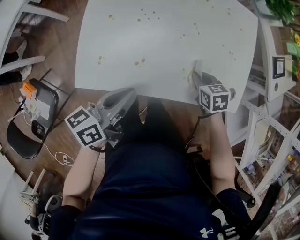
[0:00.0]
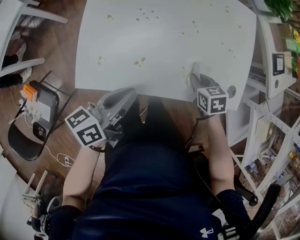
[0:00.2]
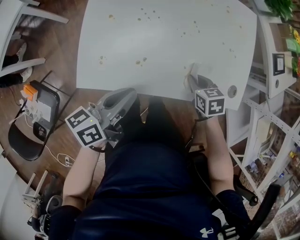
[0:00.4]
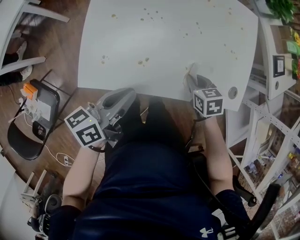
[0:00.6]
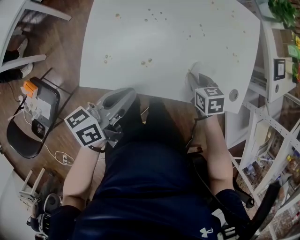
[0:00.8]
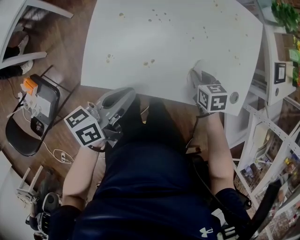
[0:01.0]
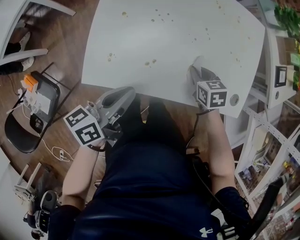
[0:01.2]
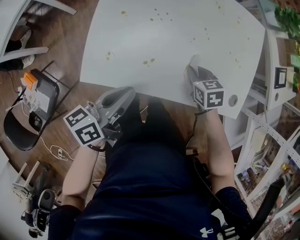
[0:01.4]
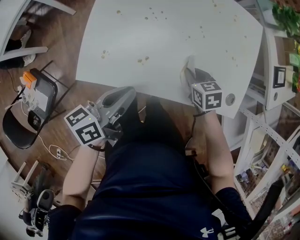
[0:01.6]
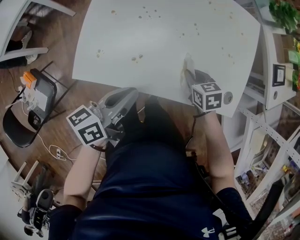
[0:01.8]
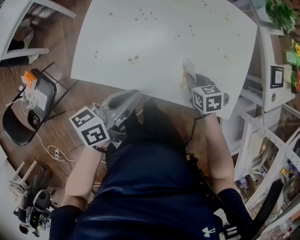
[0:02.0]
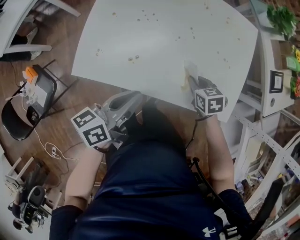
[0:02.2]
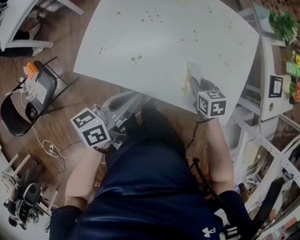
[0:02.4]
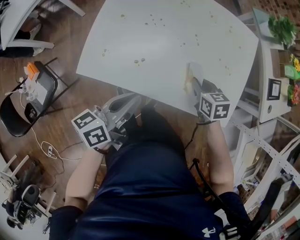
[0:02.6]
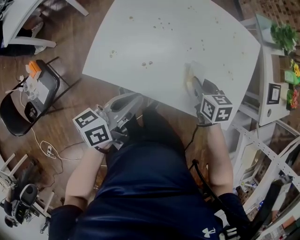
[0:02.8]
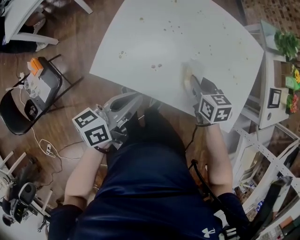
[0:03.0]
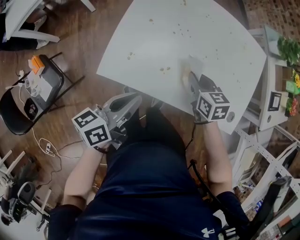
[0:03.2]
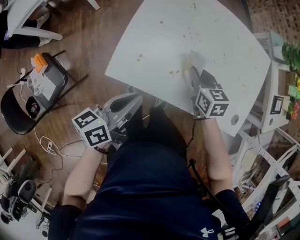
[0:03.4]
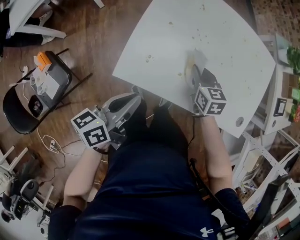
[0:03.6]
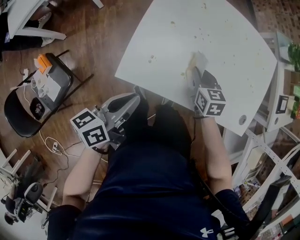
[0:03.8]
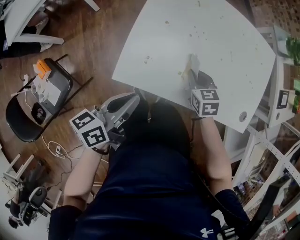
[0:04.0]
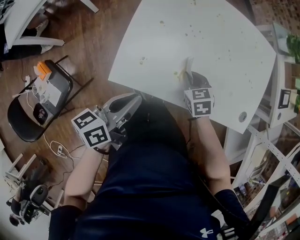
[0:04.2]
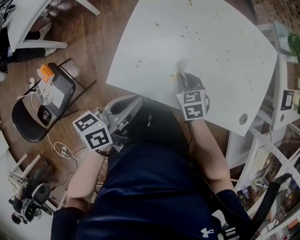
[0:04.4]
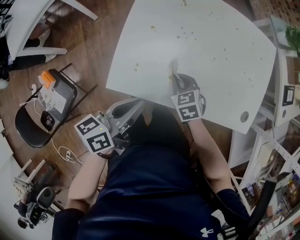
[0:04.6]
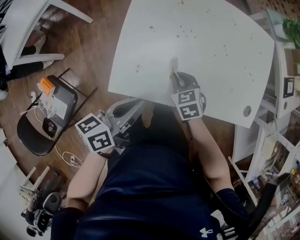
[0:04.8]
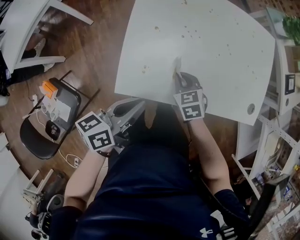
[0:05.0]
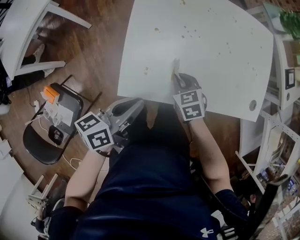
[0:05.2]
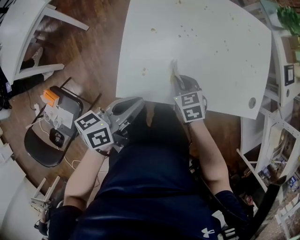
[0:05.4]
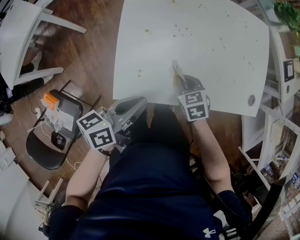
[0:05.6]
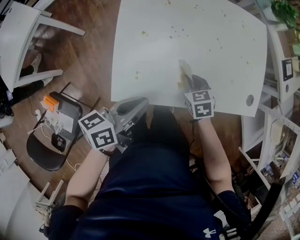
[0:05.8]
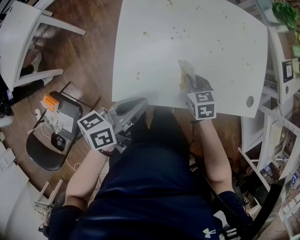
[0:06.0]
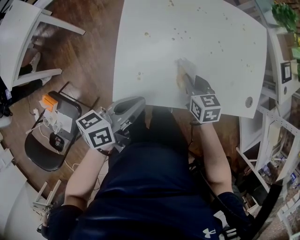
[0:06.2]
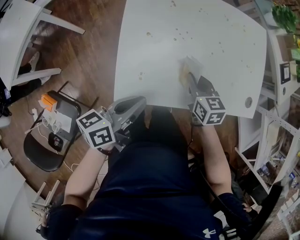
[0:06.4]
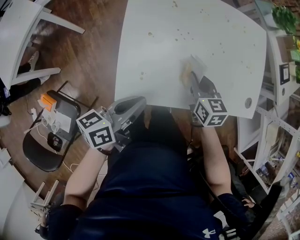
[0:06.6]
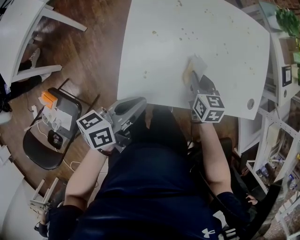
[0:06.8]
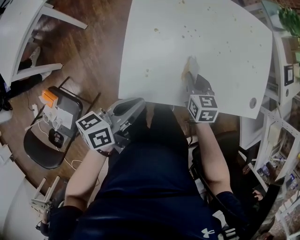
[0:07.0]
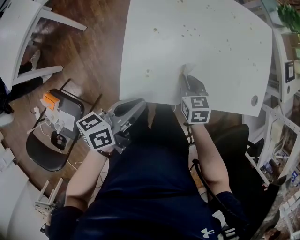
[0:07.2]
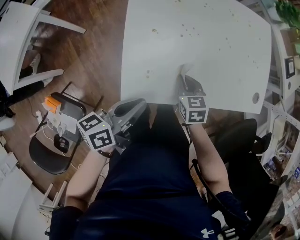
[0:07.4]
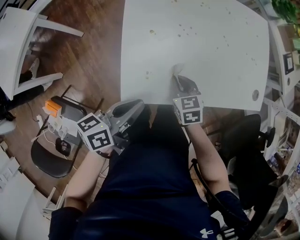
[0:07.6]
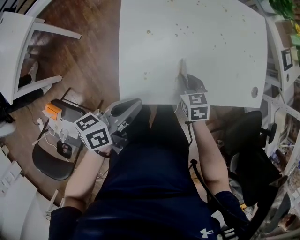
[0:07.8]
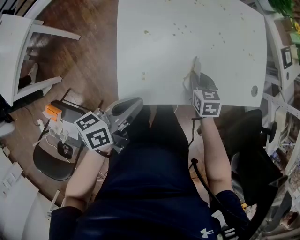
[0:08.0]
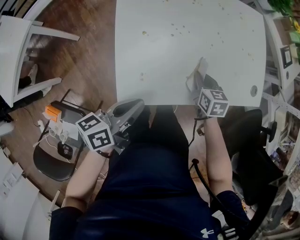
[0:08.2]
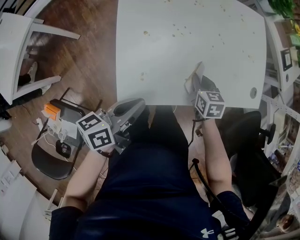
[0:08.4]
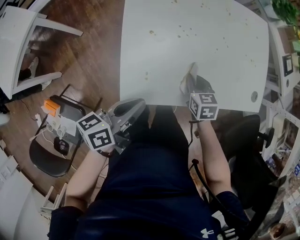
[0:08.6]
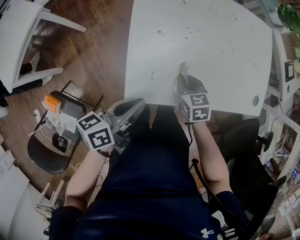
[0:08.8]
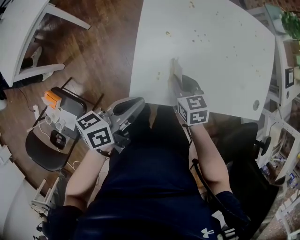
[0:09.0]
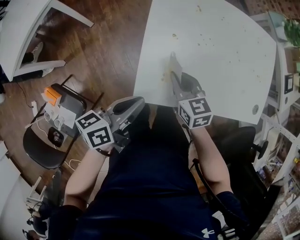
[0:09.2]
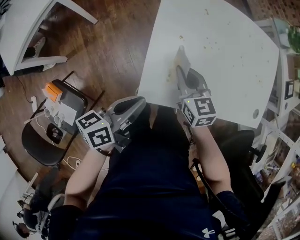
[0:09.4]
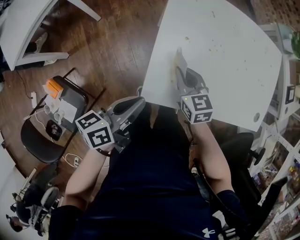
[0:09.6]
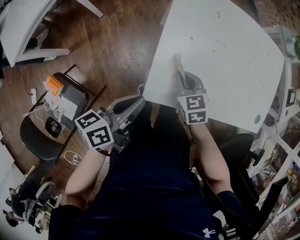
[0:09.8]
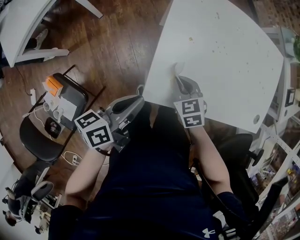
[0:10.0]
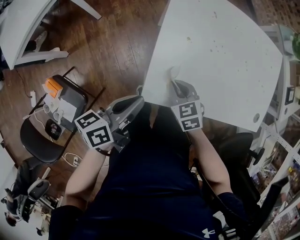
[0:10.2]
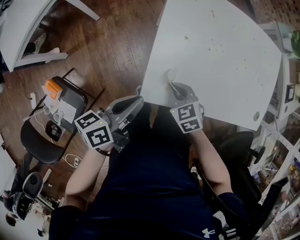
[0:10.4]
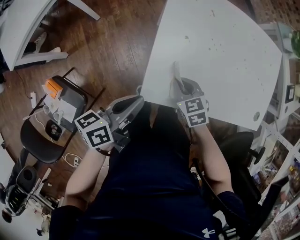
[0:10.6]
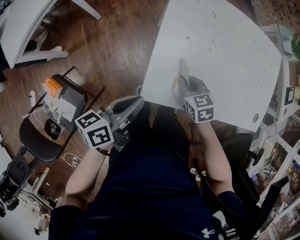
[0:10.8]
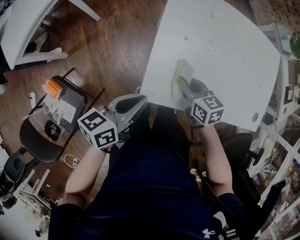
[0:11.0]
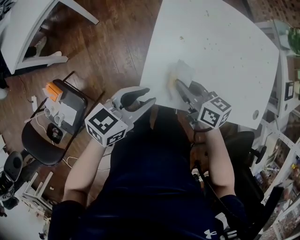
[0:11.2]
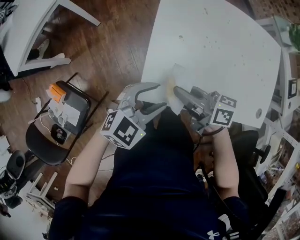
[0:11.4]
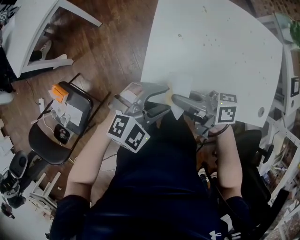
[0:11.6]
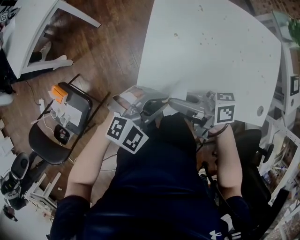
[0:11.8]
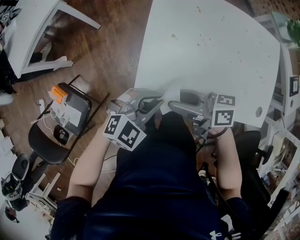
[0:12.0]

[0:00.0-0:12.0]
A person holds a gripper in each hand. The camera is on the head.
1.6 to 3.0 s: The left gripper moves about 5 cm to the right and comes back, while the right gripper is displaced upward by approximately 5 cm.
3.0 to 4.4 s: The left gripper is displaced to the left by approximately 5 cm, while the right gripper moves to the left and downward, approximately 15 cm.
4.4 to 6.0 s: The grippers stay close to where they were, moving slightly.
6.0 to 7.6 s: The left gripper heads to the left, covering approximately 5 cm, while the right gripper is displaced to the left by about 10 cm.
7.6 to 9.0 s: The right gripper goes to the right and returns, about 10 cm each way.
9.0 to 10.4 s: Both grippers move to the left, about 5 cm. The right gripper reaches about 5 cm upward, then returns, and swivels approximately 20 degrees.
10.4 to 12.0 s: The right gripper moves upward, roughly 15 cm, tilts its fingers some 40 degrees upward, and opens its fingers. Meanwhile the left gripper ends up some 10 cm from where it was, rolls clockwise, seen from behind, by some 80 degrees, and opens, then closes once more.

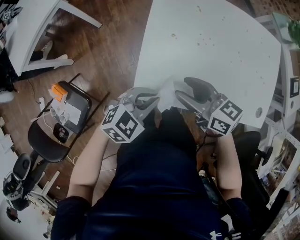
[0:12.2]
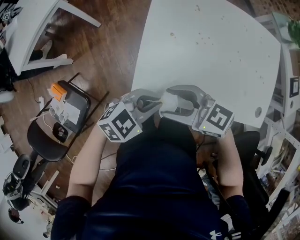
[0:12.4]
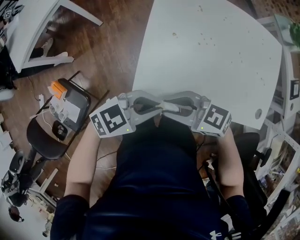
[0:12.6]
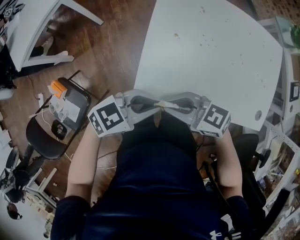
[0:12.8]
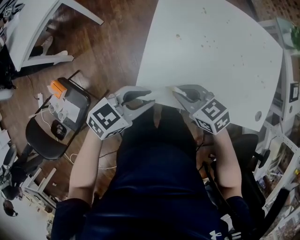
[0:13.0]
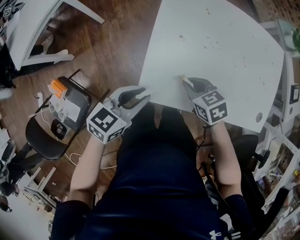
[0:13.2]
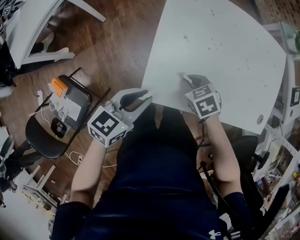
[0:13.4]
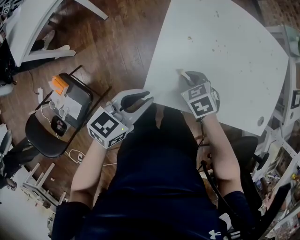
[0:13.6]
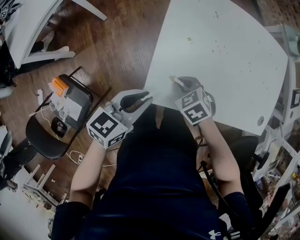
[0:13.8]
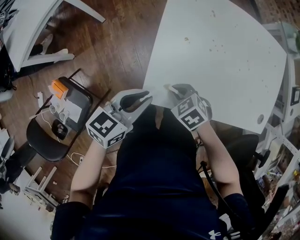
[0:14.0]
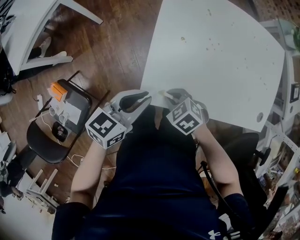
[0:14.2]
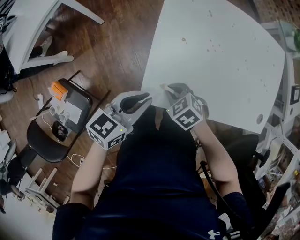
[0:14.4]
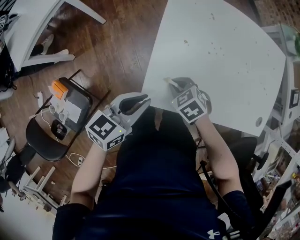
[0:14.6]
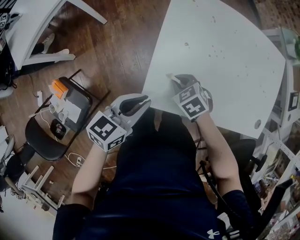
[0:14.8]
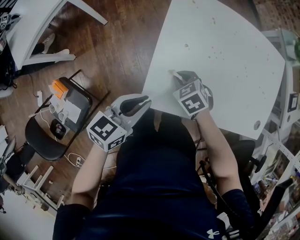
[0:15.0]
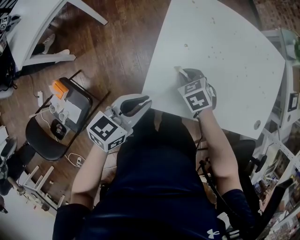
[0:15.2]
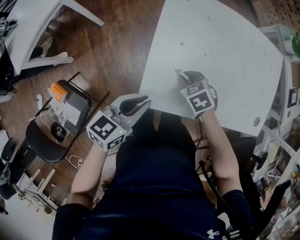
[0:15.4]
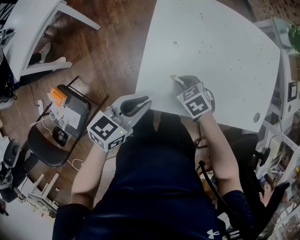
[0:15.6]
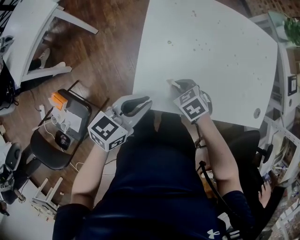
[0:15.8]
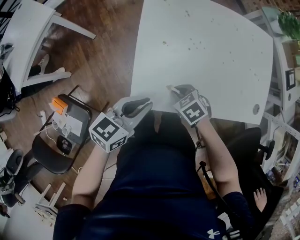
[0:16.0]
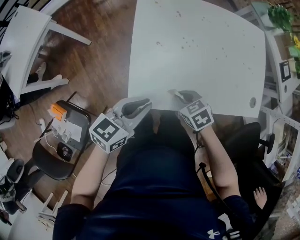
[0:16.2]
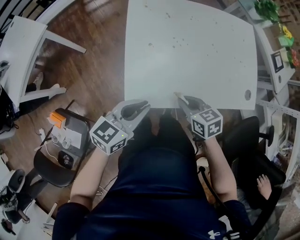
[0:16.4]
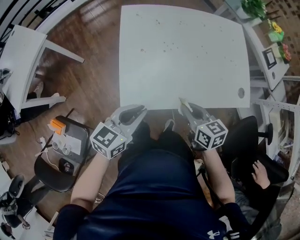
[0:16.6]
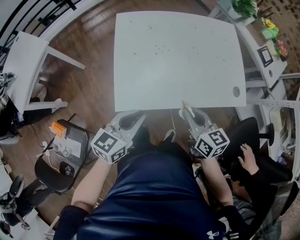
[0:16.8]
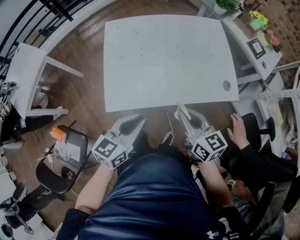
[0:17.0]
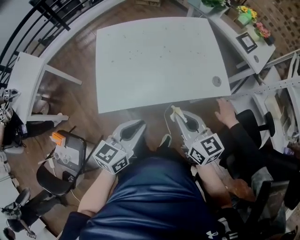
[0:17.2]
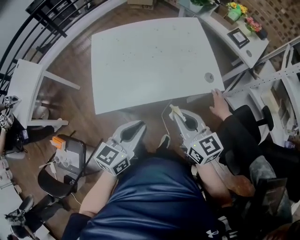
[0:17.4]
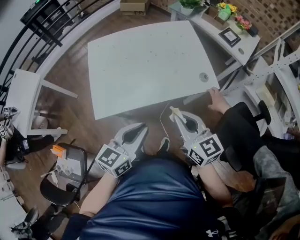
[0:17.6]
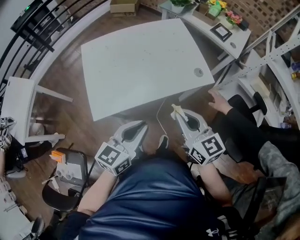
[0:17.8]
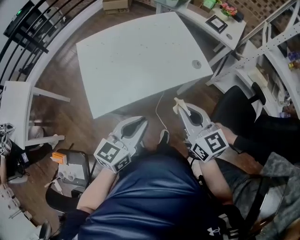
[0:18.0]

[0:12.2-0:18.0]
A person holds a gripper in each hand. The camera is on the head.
12.2 to 13.6 s: The right gripper heads downward, covering roughly 15 cm, tilts its fingers some 40 degrees downward, and closes its fingers, while the left gripper shifts by about 10 cm, and turns by some 40 degrees.
15.0 to 16.6 s: The left gripper goes some 10 cm to the right and upward, while the right gripper travels to the right, backward and upward by approximately 25 cm, and rotates roughly 50 degrees.
16.6 to 18.0 s: The two grippers go about 25 cm to the right, upward and backward. The right gripper rotates approximately 30 degrees.

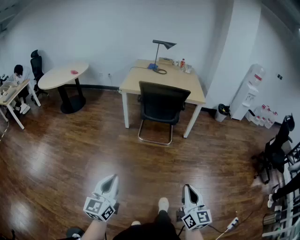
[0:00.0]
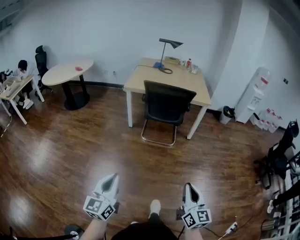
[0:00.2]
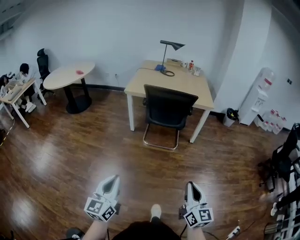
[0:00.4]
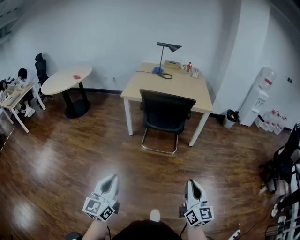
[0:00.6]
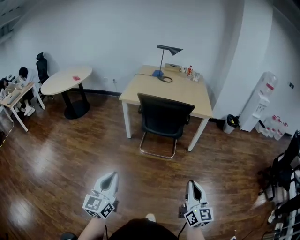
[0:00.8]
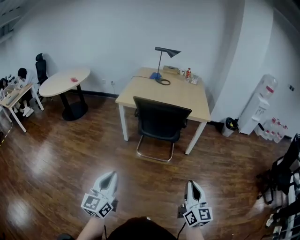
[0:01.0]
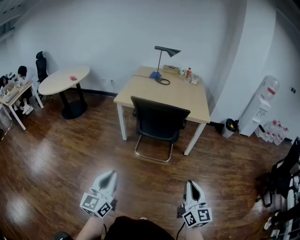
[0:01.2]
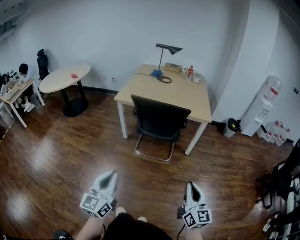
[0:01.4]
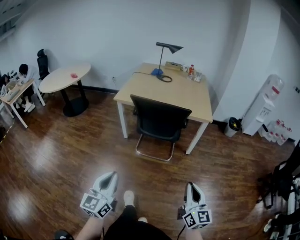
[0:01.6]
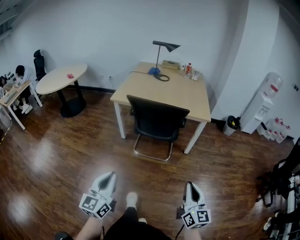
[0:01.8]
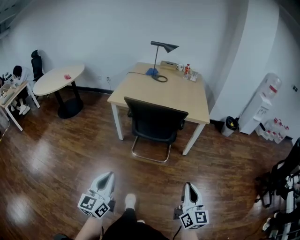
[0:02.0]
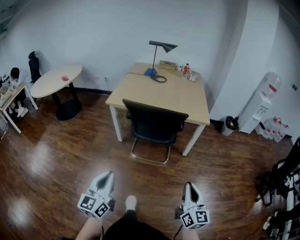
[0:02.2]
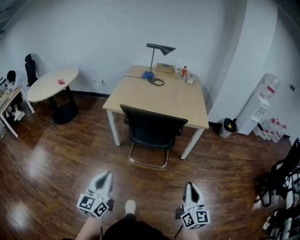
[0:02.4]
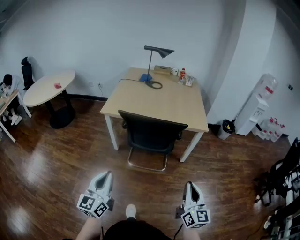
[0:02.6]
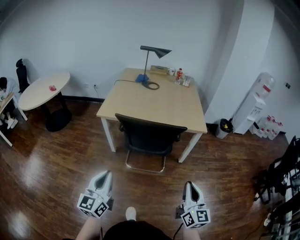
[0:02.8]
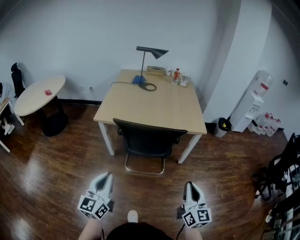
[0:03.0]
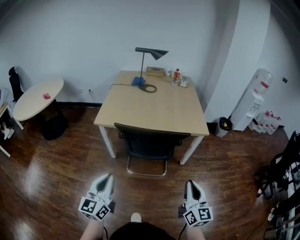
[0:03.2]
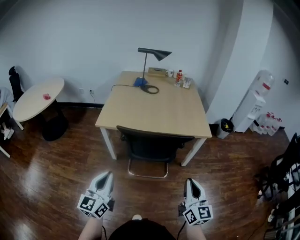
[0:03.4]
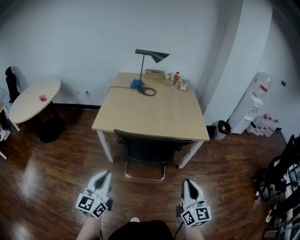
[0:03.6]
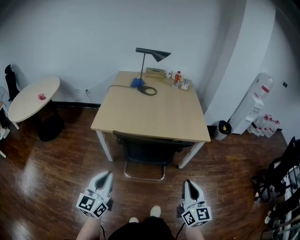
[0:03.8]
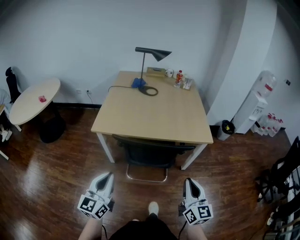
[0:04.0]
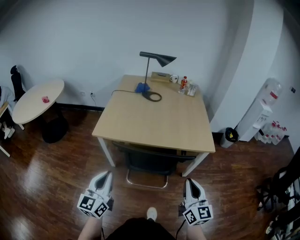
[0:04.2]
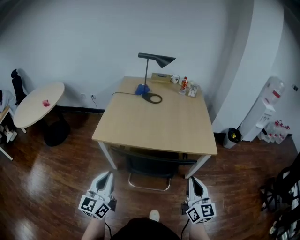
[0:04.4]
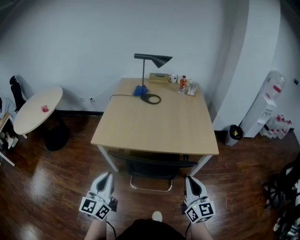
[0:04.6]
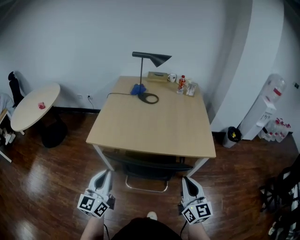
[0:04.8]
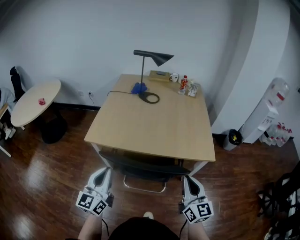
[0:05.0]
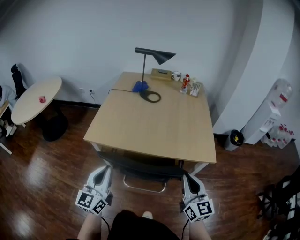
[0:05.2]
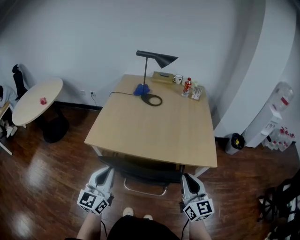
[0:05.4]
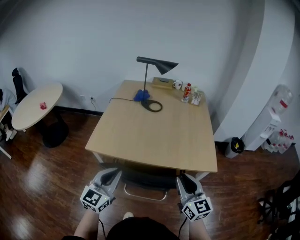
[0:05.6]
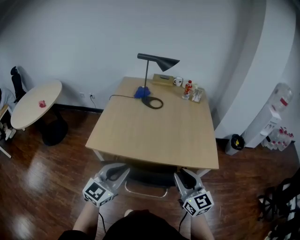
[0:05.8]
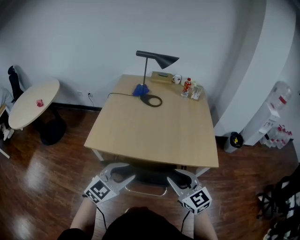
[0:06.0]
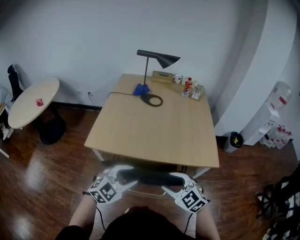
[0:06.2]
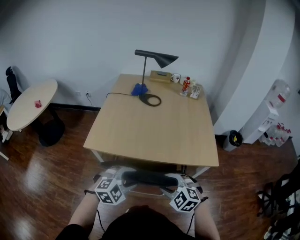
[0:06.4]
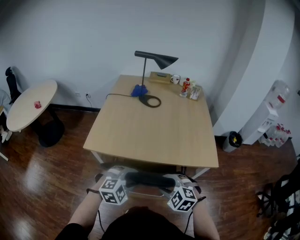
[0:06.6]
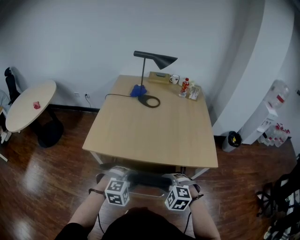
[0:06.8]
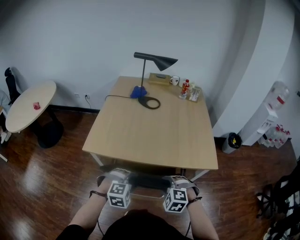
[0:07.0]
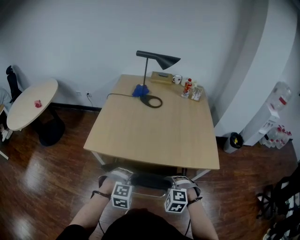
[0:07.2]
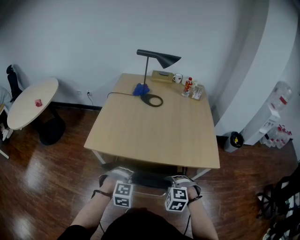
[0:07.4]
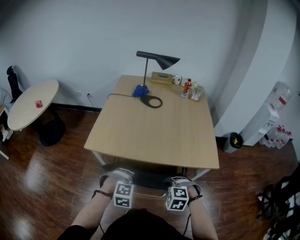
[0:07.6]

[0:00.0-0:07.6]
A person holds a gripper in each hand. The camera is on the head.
0.0 to 1.6 s: The grippers both shift forward and to the right by roughly 30 cm.
1.6 to 3.0 s: The grippers both shift forward by approximately 20 cm.
3.0 to 4.6 s: The grippers both shift forward by about 20 cm.
4.6 to 6.0 s: The right gripper is displaced forward and to the left by roughly 15 cm, turns by about 30 degrees, and opens its fingers. The left gripper heads to the right and forward, covering roughly 15 cm, swivels roughly 50 degrees, and opens.
6.0 to 7.6 s: Both grippers travel together downward, some 15 cm. The right gripper tips its fingers downward by some 50 degrees, and opens, then closes again; the left gripper tips its fingers downward by approximately 40 degrees, and opens, then closes once more.
